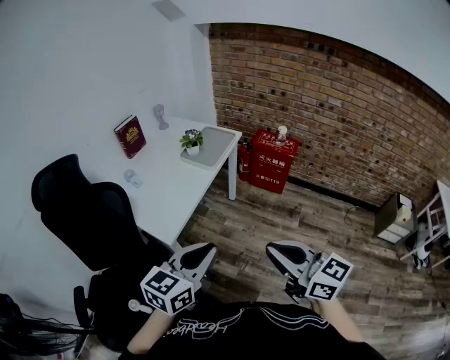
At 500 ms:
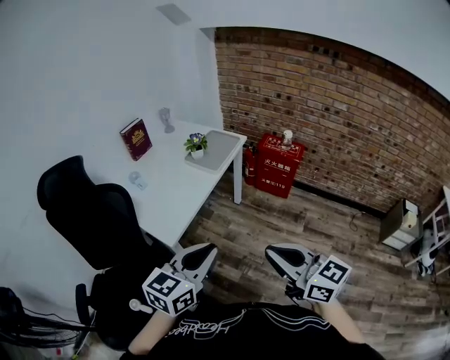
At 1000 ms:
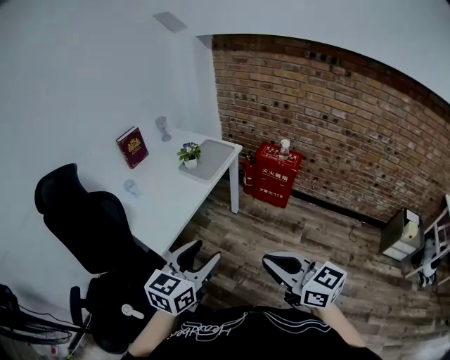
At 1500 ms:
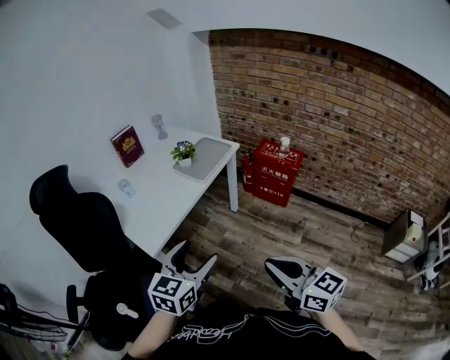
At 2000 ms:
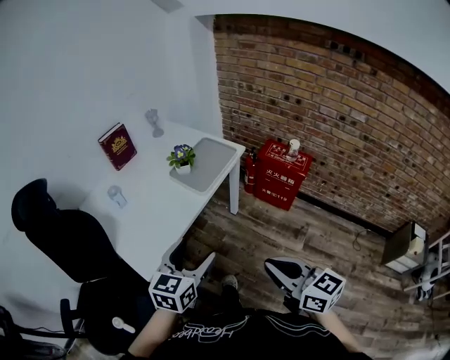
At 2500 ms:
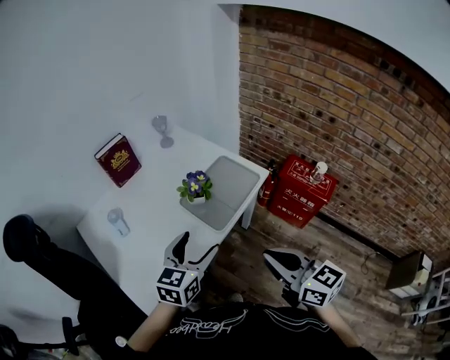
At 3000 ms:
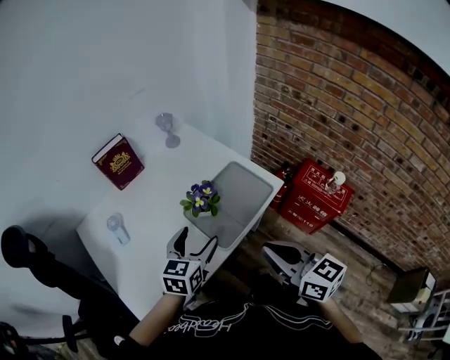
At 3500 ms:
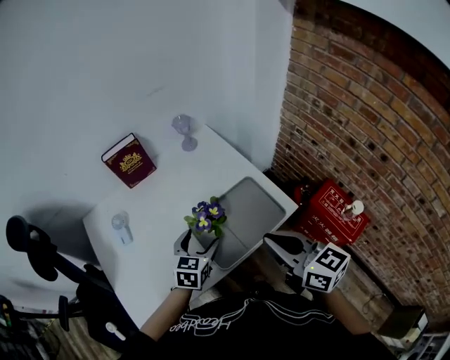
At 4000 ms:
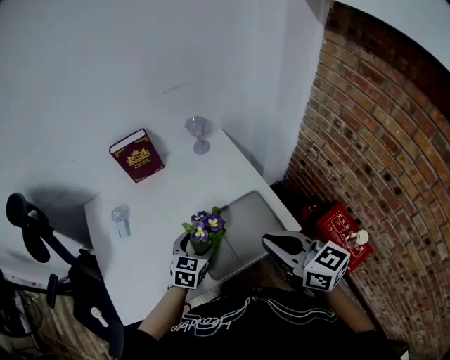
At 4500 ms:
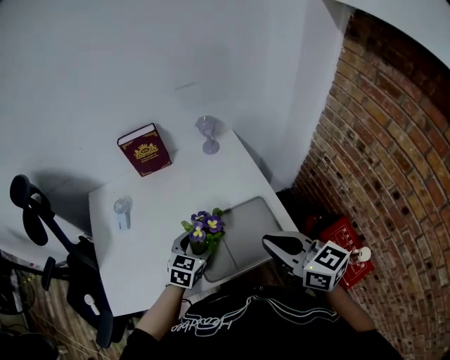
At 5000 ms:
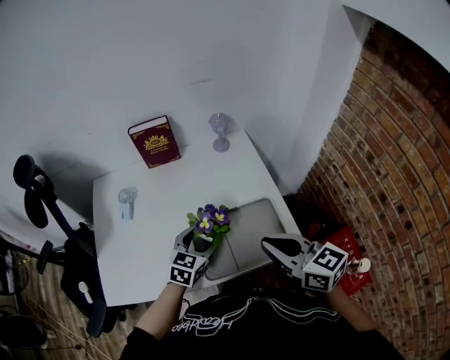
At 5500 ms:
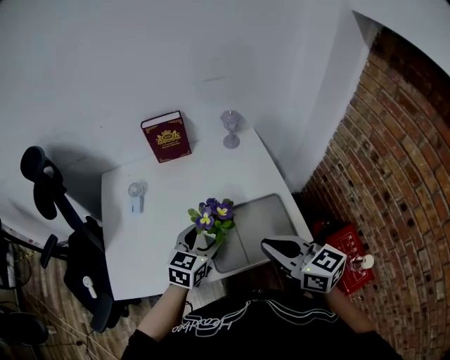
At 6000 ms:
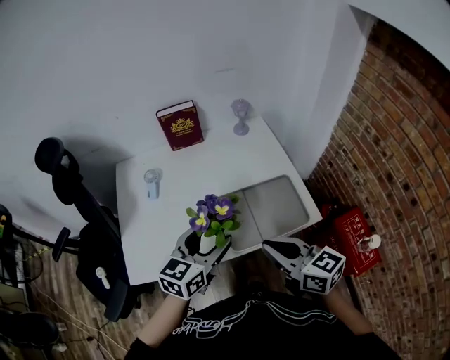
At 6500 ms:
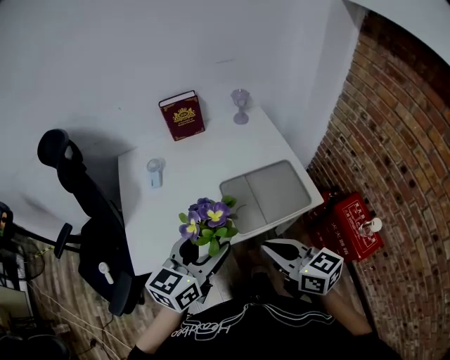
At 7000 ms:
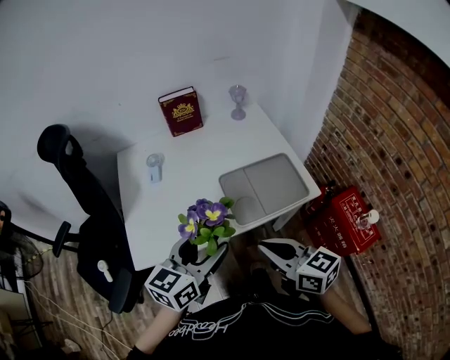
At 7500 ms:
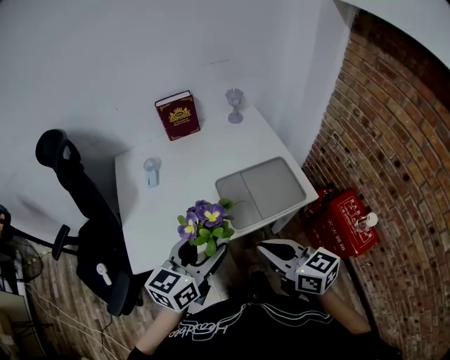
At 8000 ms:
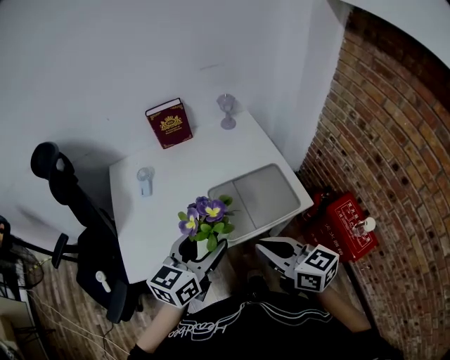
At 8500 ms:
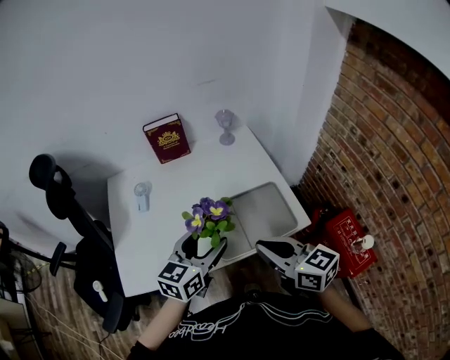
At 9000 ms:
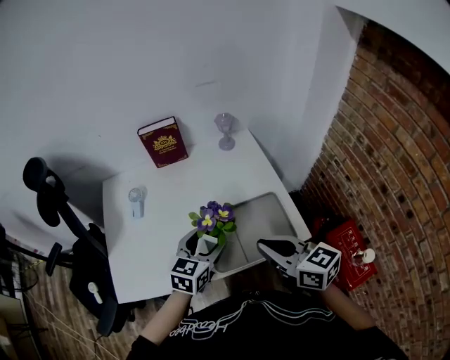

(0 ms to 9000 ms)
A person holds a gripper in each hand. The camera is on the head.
0 ms - 2000 ms: The left gripper is displaced forward and downward by about 20 cm, turns by roughly 20 degrees, and opens its fingers; the right gripper goes some 20 cm forward, to the right and downward.
2000 ms - 4500 ms: The pair of grippers is taken some 50 cm. The left gripper turns by roughly 40 degrees, while the right gripper changes its angle by some 40 degrees.
4500 ms - 7000 ms: The right gripper is displaced to the left and backward by approximately 20 cm. The left gripper is displaced backward, upward and to the left by about 30 cm, and swivels approximately 30 degrees.
7000 ms - 9000 ms: The left gripper travels forward, to the right and downward by roughly 20 cm, while the right gripper moves forward and to the right, roughly 15 cm.

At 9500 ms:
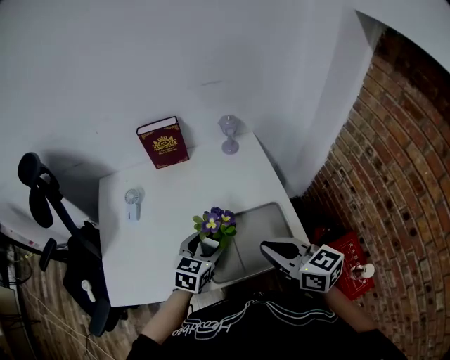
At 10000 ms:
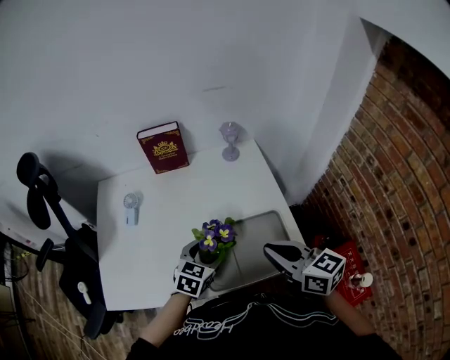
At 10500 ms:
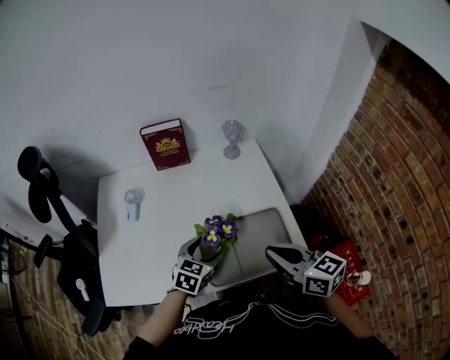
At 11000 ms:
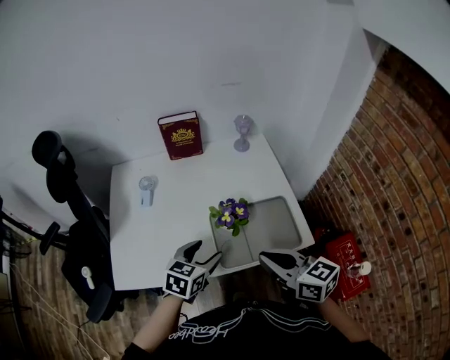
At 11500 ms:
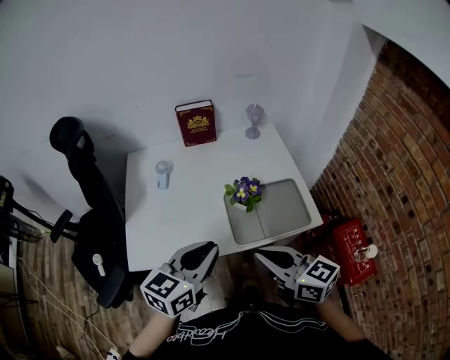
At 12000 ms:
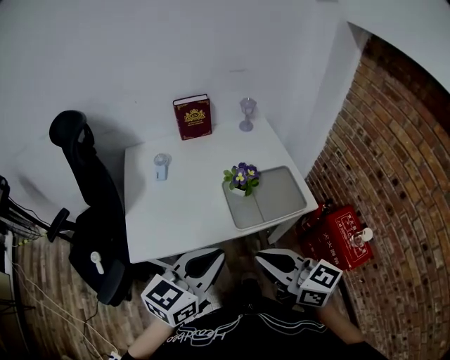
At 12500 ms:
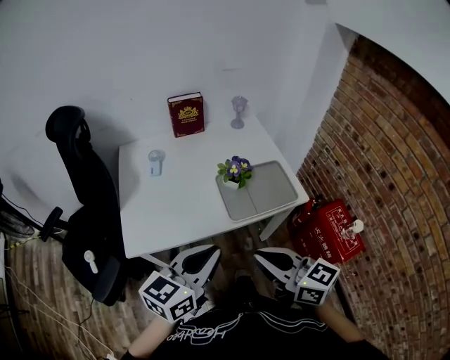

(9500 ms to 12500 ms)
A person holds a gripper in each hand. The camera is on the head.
9500 ms - 11000 ms: The two grippers go about 10 cm backward and to the left.
11000 ms - 12500 ms: The left gripper is displaced backward and upward by approximately 25 cm, turns by approximately 30 degrees, and closes up, while the right gripper heads backward and to the left, covering about 20 cm.

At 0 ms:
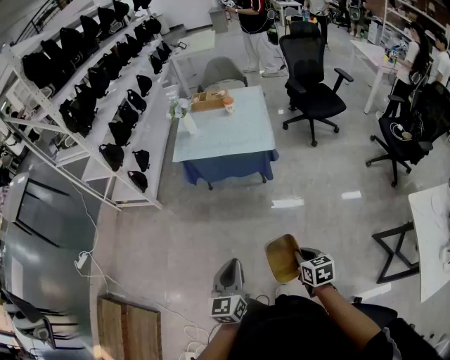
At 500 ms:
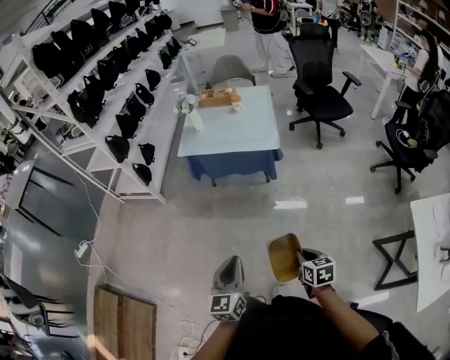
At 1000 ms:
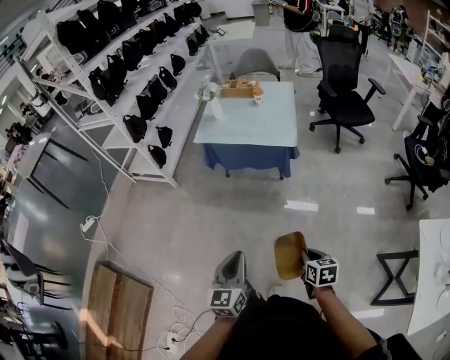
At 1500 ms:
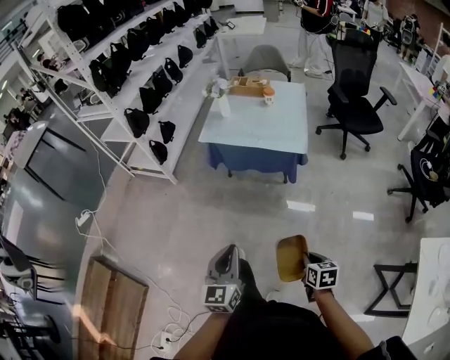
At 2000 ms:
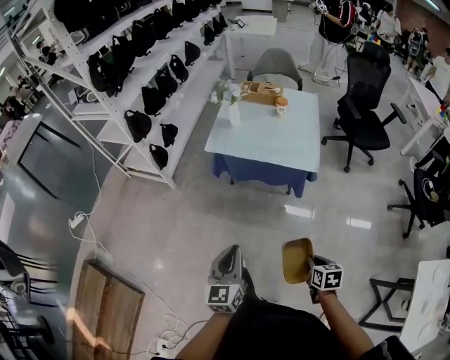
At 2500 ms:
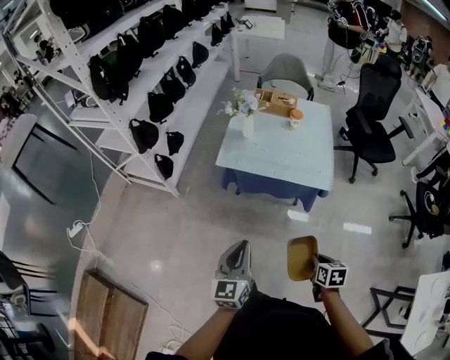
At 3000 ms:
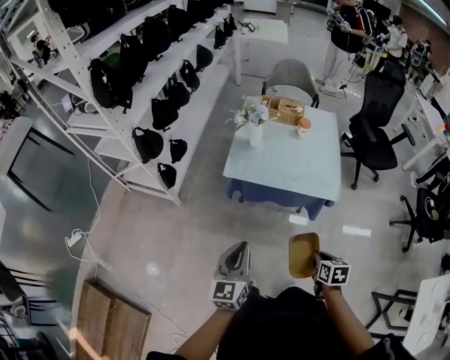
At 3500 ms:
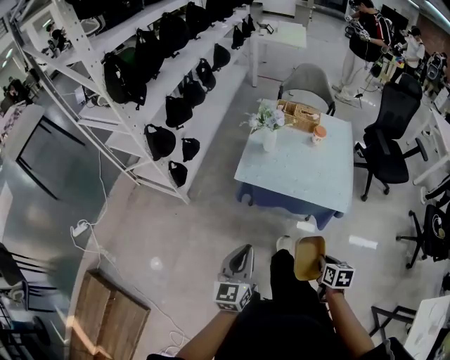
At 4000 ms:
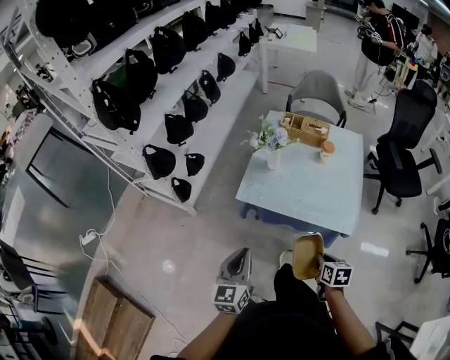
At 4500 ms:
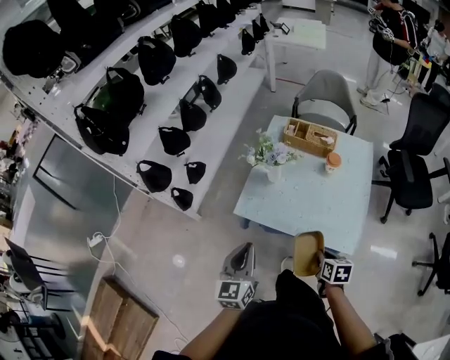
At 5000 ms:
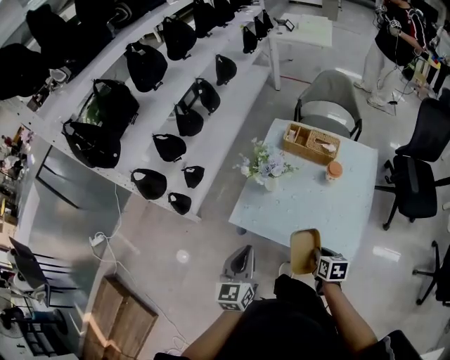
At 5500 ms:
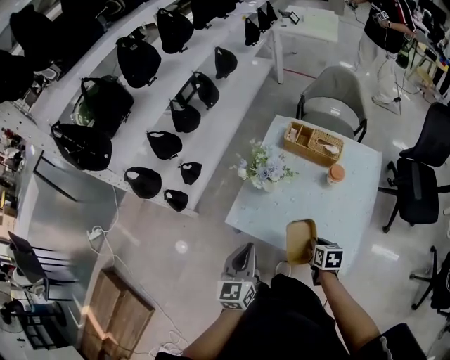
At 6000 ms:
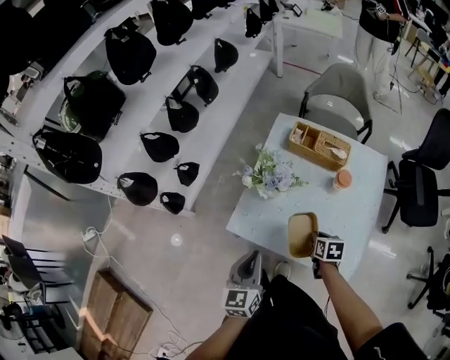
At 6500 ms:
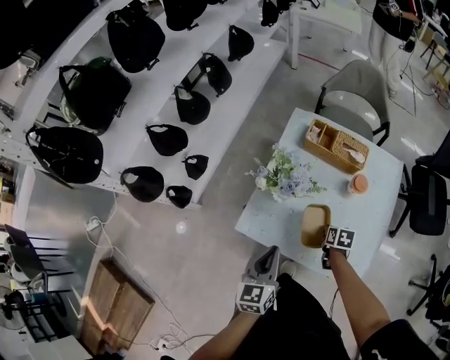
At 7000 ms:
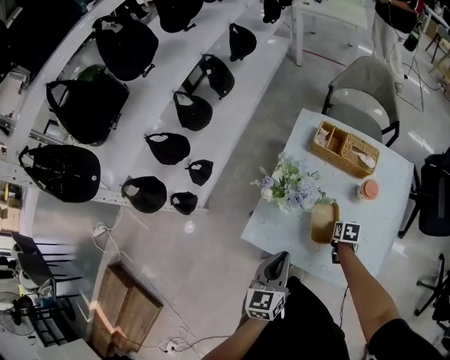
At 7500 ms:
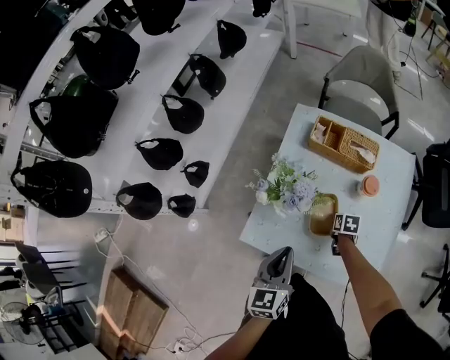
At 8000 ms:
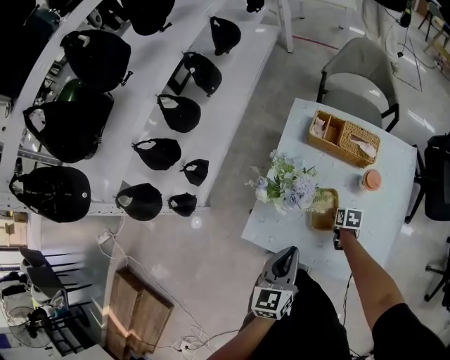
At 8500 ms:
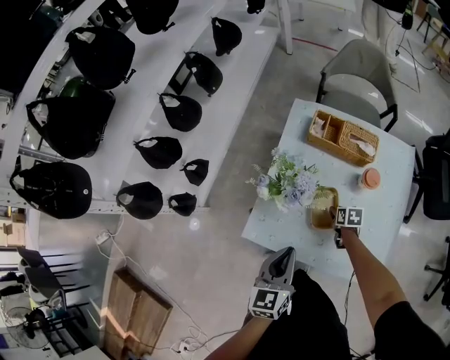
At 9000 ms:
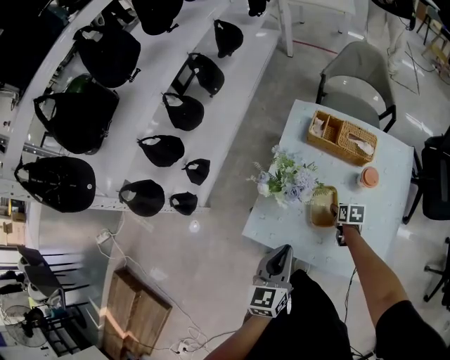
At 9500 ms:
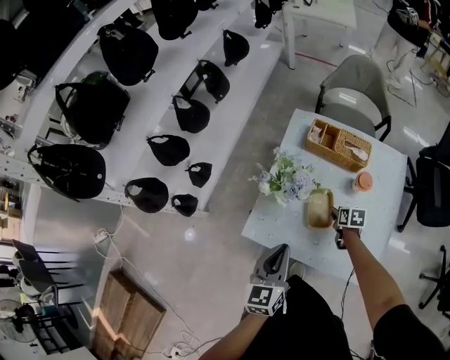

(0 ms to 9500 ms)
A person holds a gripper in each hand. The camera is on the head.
0 ms - 2000 ms: Both grippers travel together forward, roughly 20 cm.
2000 ms - 4000 ms: Both grippers travel together forward, approximately 35 cm.
4000 ms - 5500 ms: The left gripper travels forward and to the right by about 25 cm. The right gripper goes some 25 cm forward.
5500 ms - 7500 ms: The left gripper moves forward and downward, some 15 cm. The right gripper goes approximately 25 cm forward and downward.
7500 ms - 9500 ms: The left gripper moves about 5 cm. The right gripper moves upward, approximately 5 cm, and opens up.

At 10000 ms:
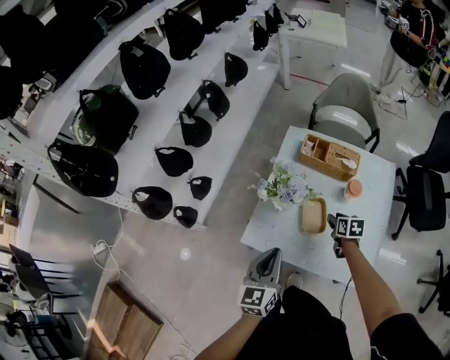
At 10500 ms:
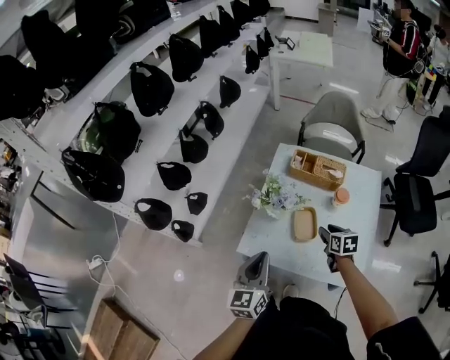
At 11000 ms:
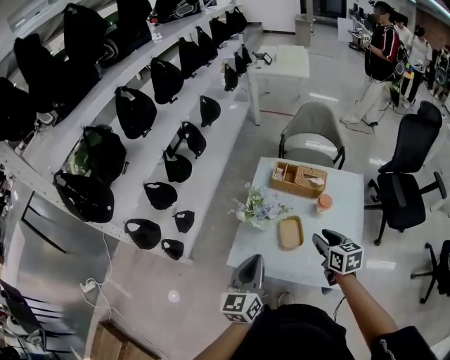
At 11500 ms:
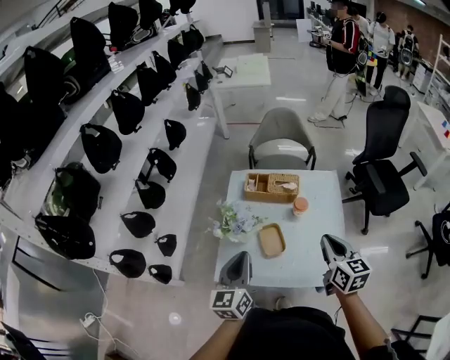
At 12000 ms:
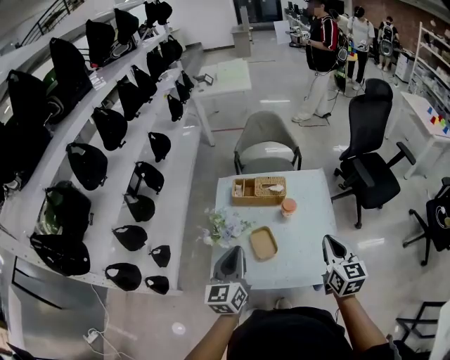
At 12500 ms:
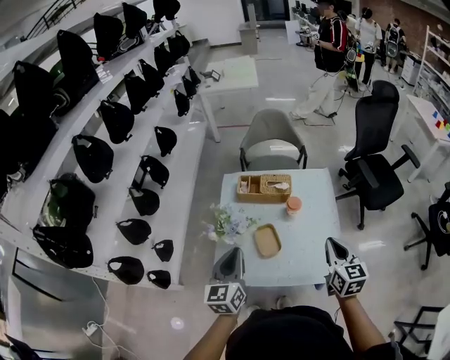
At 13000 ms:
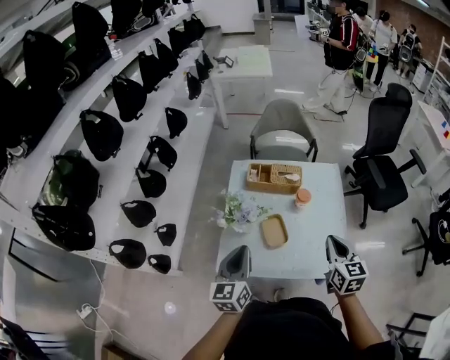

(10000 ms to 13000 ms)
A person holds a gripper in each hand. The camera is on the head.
10000 ms - 11500 ms: The left gripper is displaced upward by about 10 cm. The right gripper shifts about 35 cm upward and backward, tilts its fingers some 30 degrees upward, and closes up.
11500 ms - 13000 ms: The grippers stay close to where they were, moving slightly.

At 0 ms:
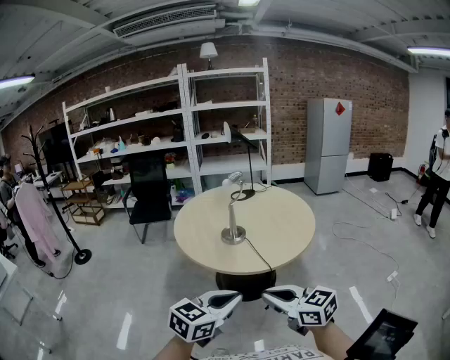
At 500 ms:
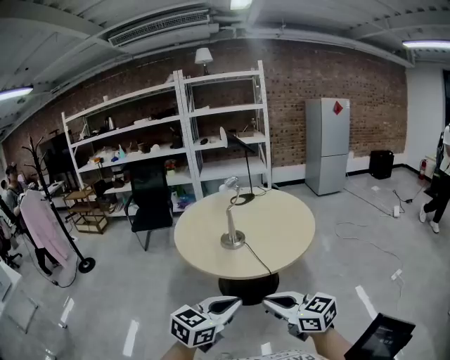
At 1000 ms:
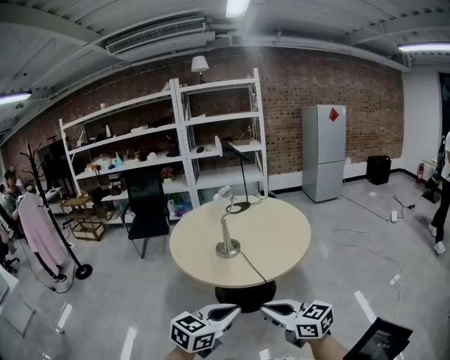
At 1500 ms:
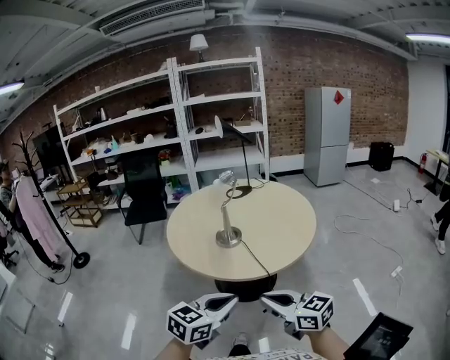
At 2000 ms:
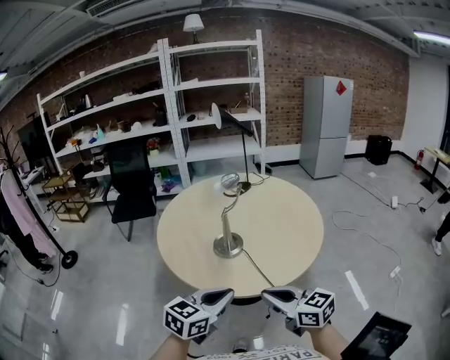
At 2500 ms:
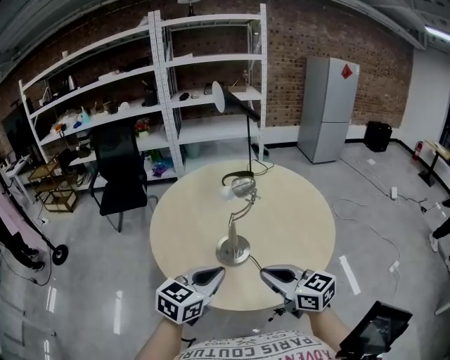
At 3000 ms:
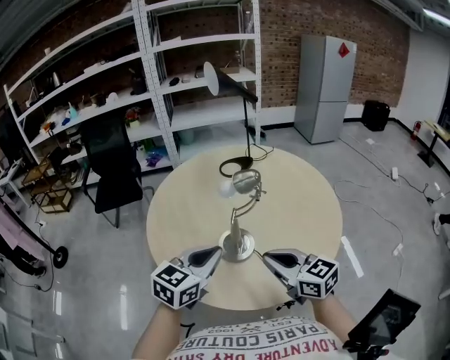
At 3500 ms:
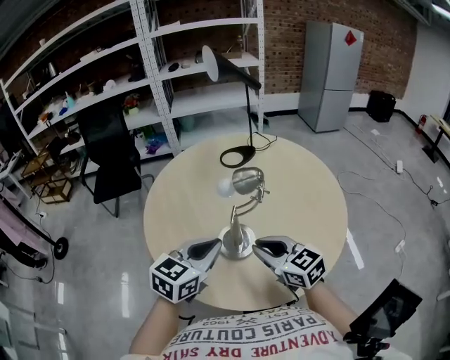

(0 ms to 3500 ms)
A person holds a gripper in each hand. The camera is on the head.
0 ms - 2000 ms: Both grippers travel together forward, some 20 cm.
2000 ms - 3500 ms: The grippers both shift forward by roughly 25 cm.
